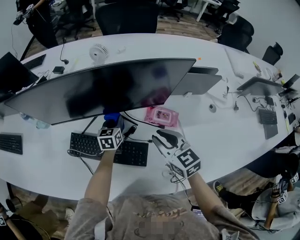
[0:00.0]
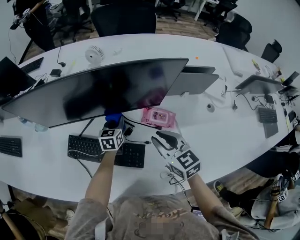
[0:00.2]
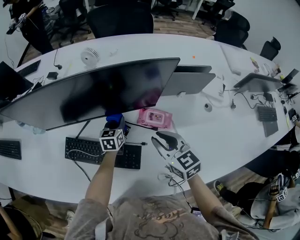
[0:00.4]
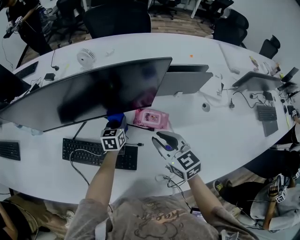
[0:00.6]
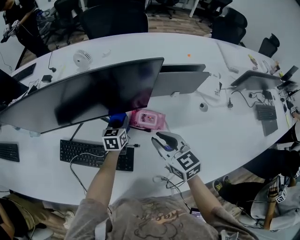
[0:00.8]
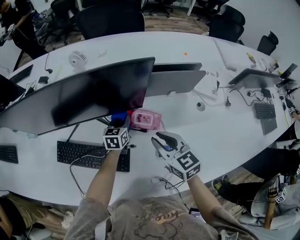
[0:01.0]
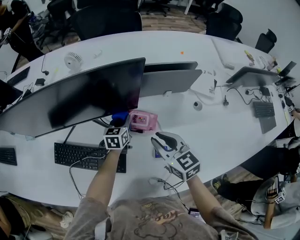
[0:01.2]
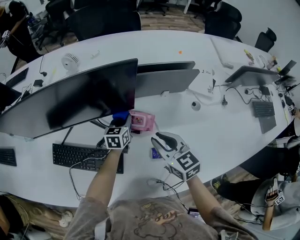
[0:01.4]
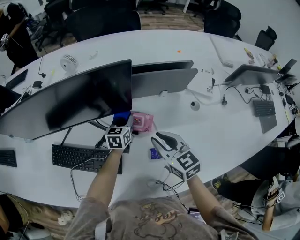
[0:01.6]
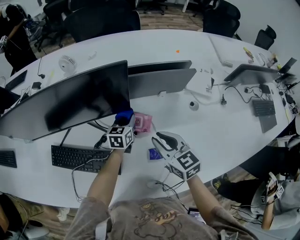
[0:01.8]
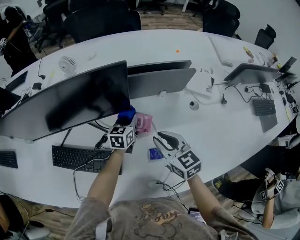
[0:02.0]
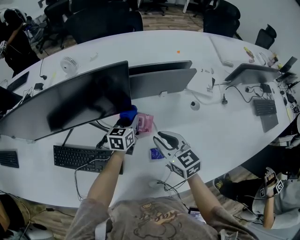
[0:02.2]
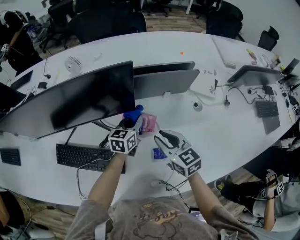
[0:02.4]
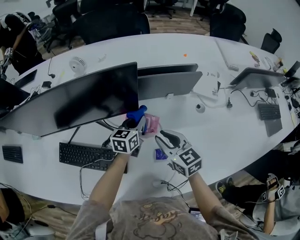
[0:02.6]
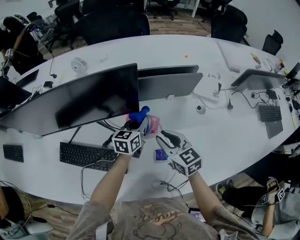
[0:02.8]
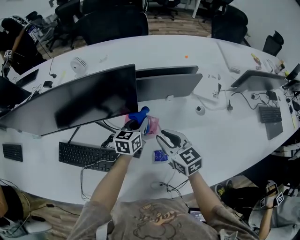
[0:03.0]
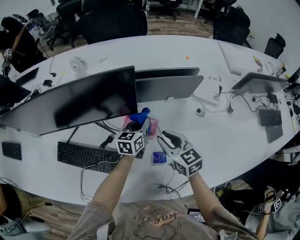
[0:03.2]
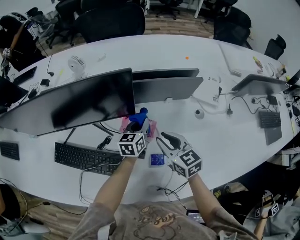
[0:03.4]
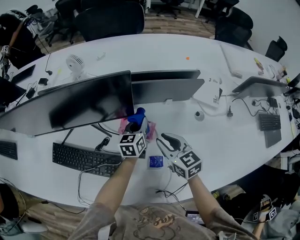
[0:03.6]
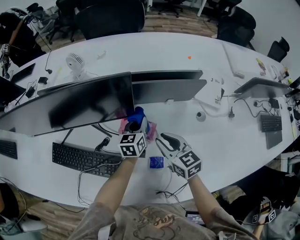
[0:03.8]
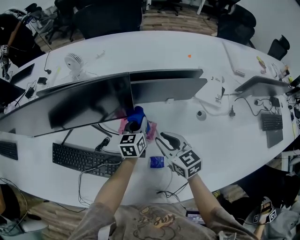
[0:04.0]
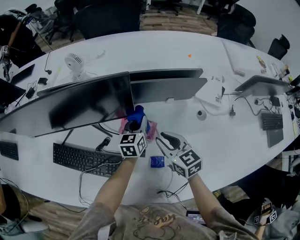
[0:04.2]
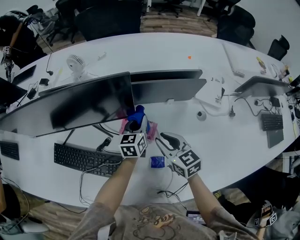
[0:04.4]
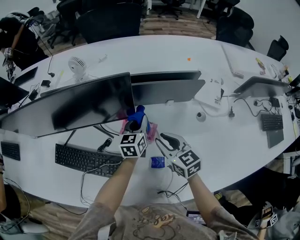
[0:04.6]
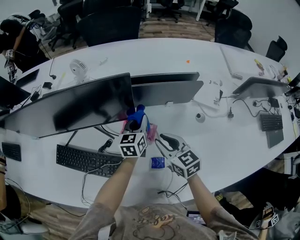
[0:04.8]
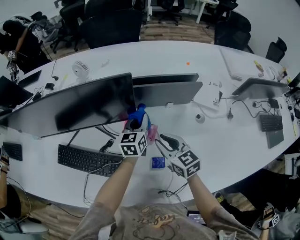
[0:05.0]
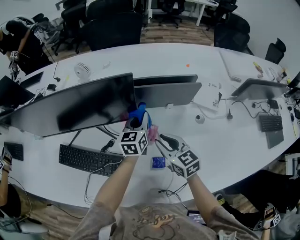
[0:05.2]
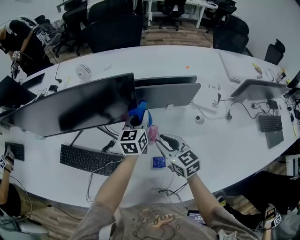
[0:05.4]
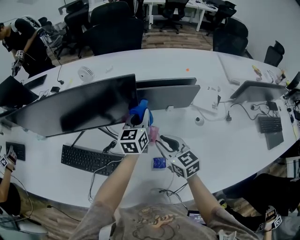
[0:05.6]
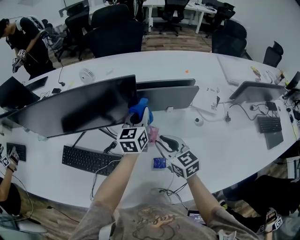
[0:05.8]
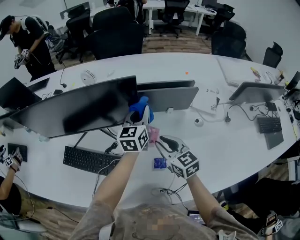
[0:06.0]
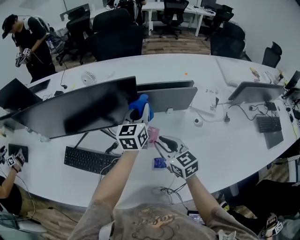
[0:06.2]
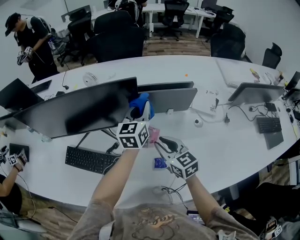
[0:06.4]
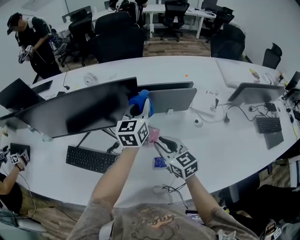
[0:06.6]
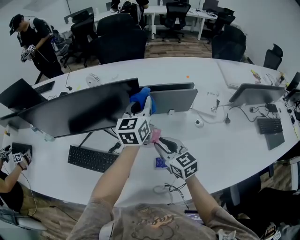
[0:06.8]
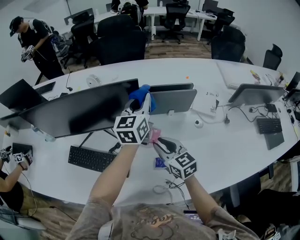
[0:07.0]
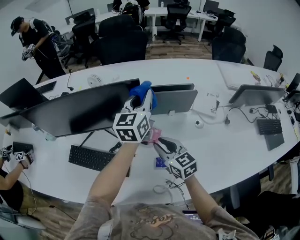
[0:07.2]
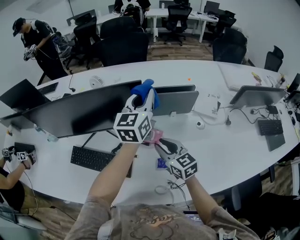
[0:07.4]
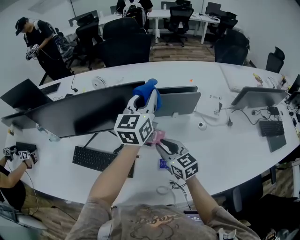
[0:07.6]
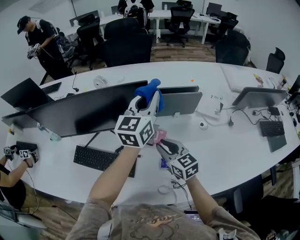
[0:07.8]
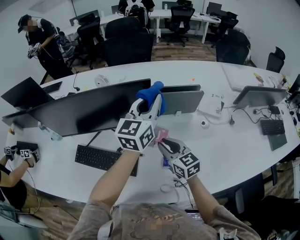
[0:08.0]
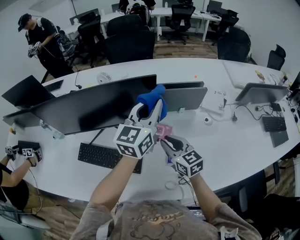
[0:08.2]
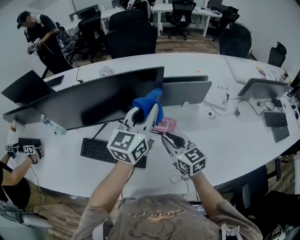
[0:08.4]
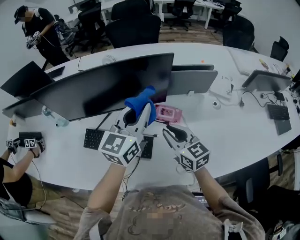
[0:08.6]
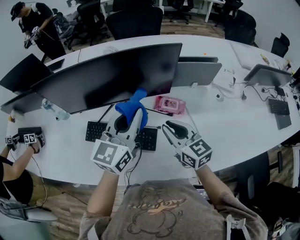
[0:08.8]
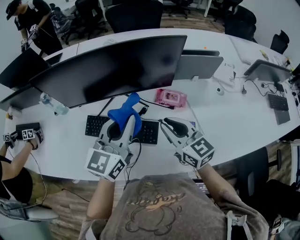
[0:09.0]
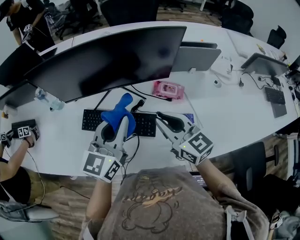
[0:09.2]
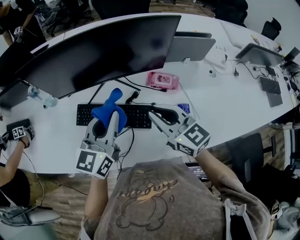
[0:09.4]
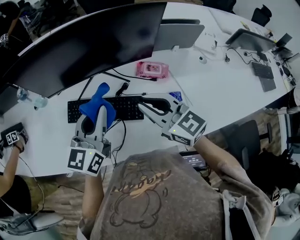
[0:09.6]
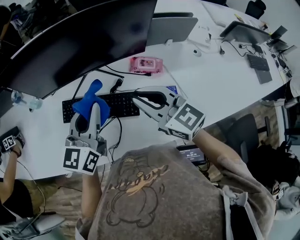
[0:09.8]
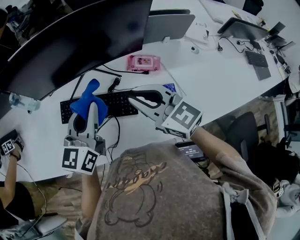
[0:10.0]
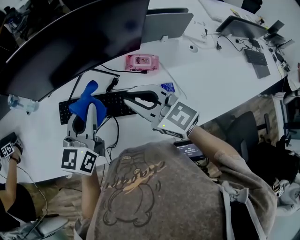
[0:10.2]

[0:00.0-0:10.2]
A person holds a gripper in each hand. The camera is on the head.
0:00.0 to 0:01.4: Both grippers travel together to the right, about 15 cm.
0:01.4 to 0:03.0: The left gripper travels to the right and upward by roughly 10 cm.
0:03.0 to 0:04.4: There are only small adjustments of the grippers.
0:04.4 to 0:05.8: The right gripper changes place by some 5 cm. The left gripper shifts about 15 cm upward.
0:05.8 to 0:07.2: The left gripper travels upward by some 15 cm.
0:07.2 to 0:08.8: The right gripper travels to the left and backward by some 15 cm; the left gripper heads to the left and backward, covering roughly 25 cm.
0:08.8 to 0:10.2: The right gripper goes some 10 cm to the left, while the left gripper shifts roughly 10 cm to the left and downward.

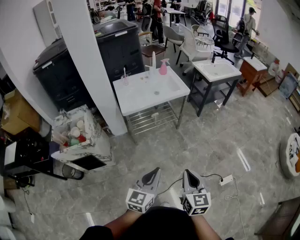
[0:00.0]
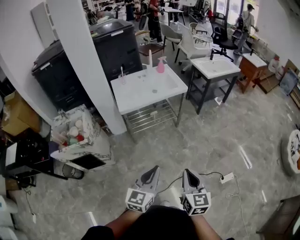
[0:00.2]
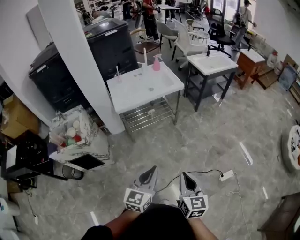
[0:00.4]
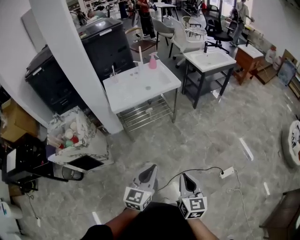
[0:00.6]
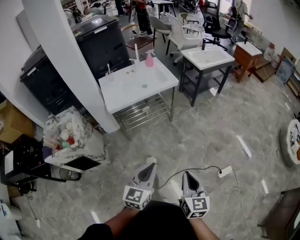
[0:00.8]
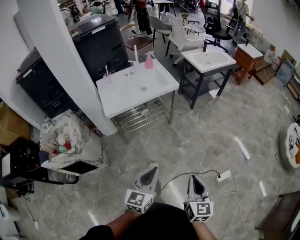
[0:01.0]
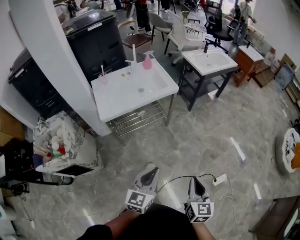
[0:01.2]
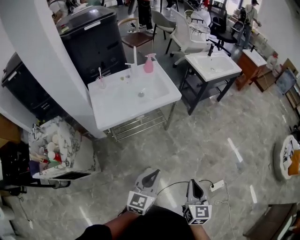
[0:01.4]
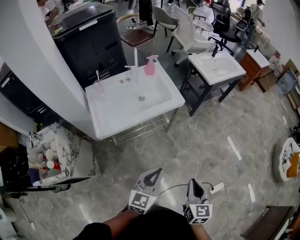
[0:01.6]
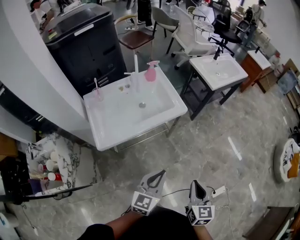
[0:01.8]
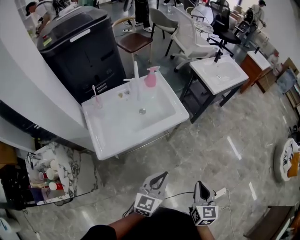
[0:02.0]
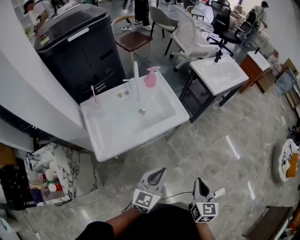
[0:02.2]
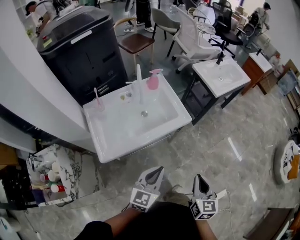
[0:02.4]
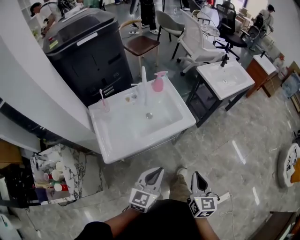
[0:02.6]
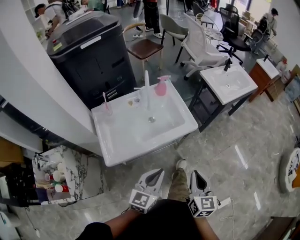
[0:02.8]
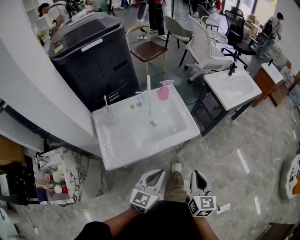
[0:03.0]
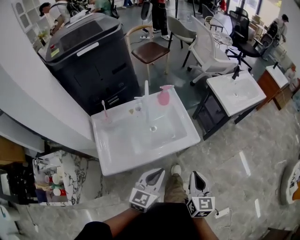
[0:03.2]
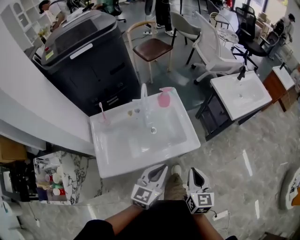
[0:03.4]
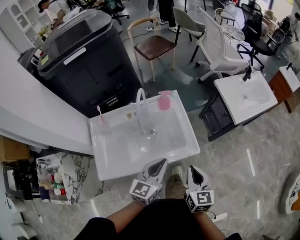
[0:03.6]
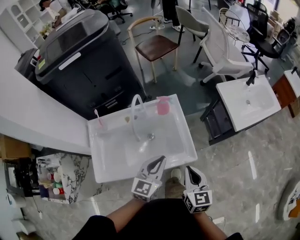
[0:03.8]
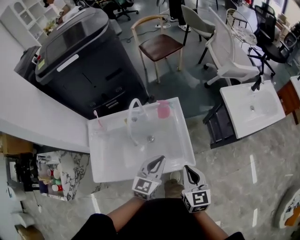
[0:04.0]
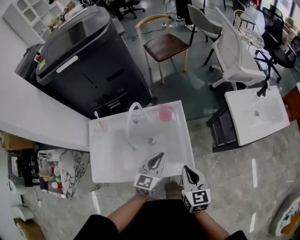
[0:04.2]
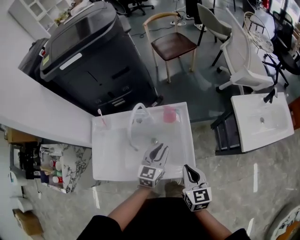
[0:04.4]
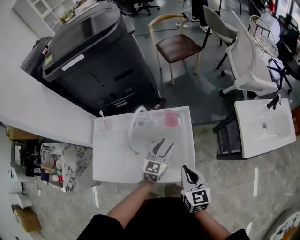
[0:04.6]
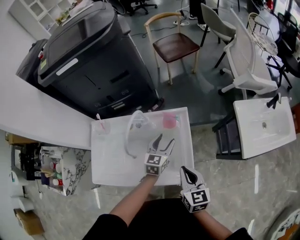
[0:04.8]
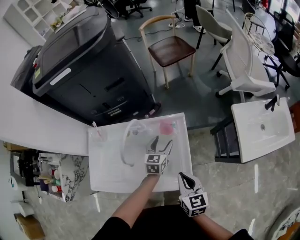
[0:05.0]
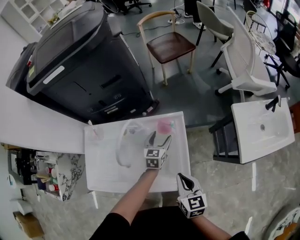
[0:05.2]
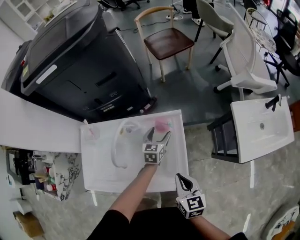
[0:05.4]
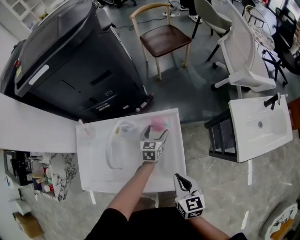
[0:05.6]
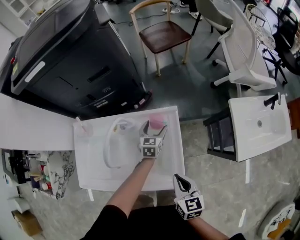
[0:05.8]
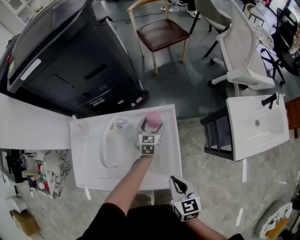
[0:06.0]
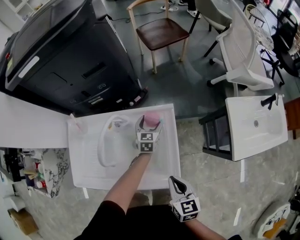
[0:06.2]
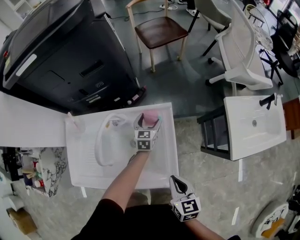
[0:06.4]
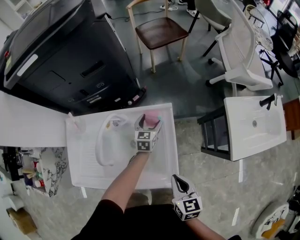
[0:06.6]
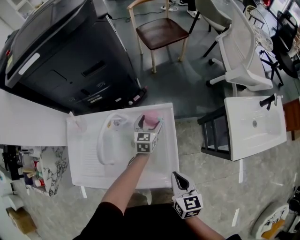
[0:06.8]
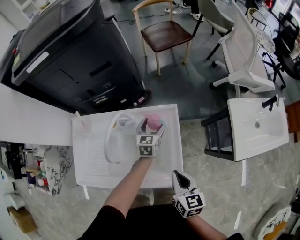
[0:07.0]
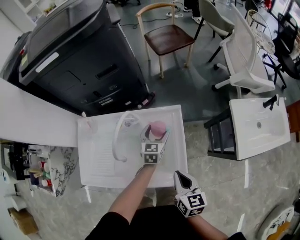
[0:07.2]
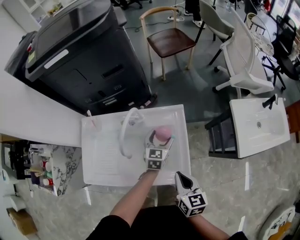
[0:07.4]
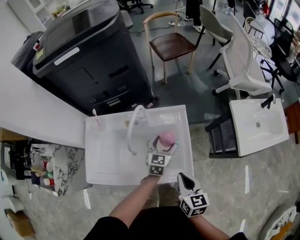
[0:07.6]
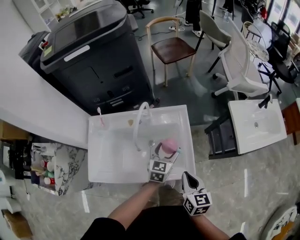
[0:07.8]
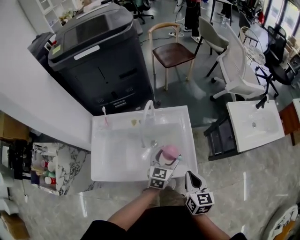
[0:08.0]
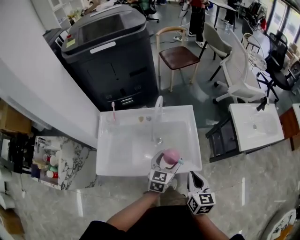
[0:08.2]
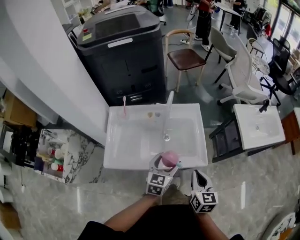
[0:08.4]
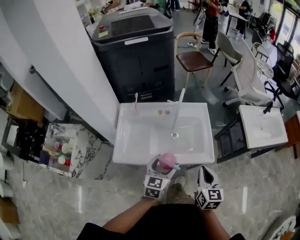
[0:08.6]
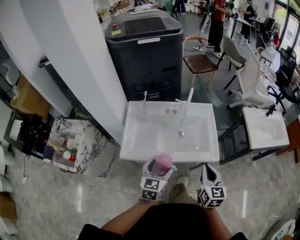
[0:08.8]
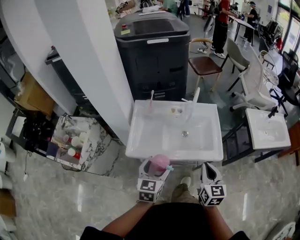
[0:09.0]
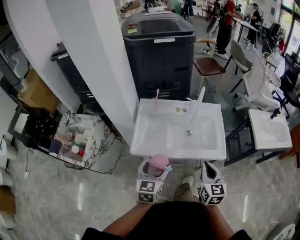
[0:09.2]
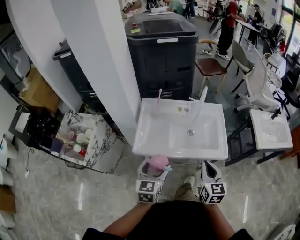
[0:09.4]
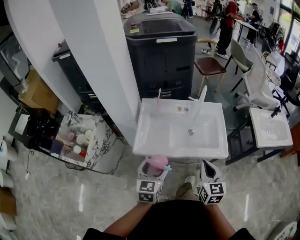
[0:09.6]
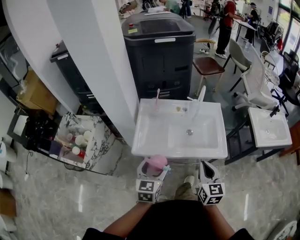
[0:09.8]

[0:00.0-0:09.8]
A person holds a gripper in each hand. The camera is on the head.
0:00.0 to 0:01.4: The grippers both shift forward by roughly 25 cm.
0:01.4 to 0:02.8: The two grippers go some 30 cm forward and to the left.
0:02.8 to 0:04.2: The right gripper moves roughly 40 cm, and turns by some 30 degrees. The left gripper ends up some 40 cm from where it was, and swivels some 20 degrees.
0:04.2 to 0:05.6: The left gripper goes approximately 30 cm forward and downward, and opens. The right gripper shifts roughly 10 cm forward and downward.
0:05.6 to 0:07.0: The grippers make only small movements.
0:07.0 to 0:08.4: The right gripper shifts roughly 25 cm backward and to the left. The left gripper moves backward and upward, about 40 cm.
0:08.4 to 0:09.8: The right gripper is displaced to the left and backward by roughly 15 cm. Meanwhile the left gripper travels to the left and backward by roughly 30 cm.

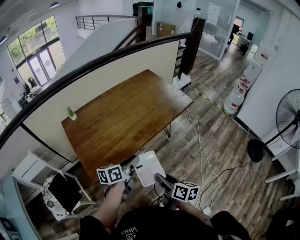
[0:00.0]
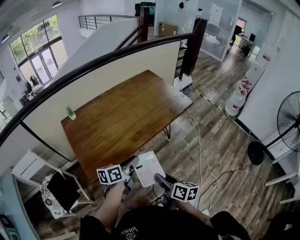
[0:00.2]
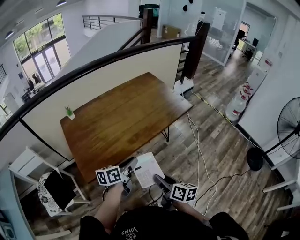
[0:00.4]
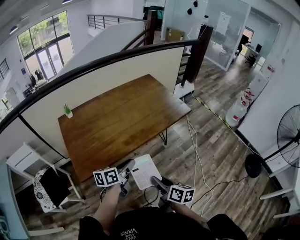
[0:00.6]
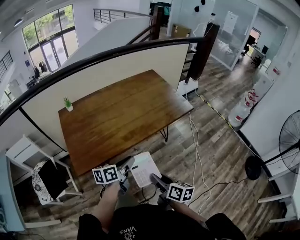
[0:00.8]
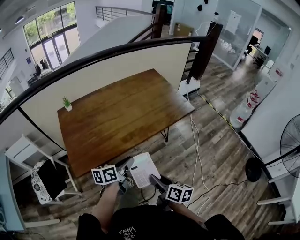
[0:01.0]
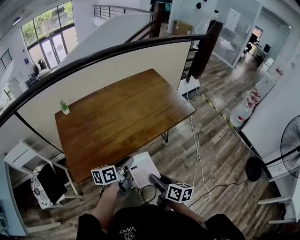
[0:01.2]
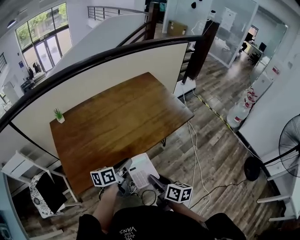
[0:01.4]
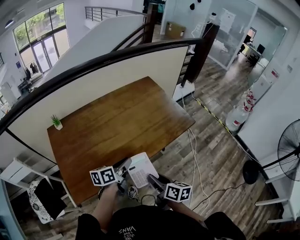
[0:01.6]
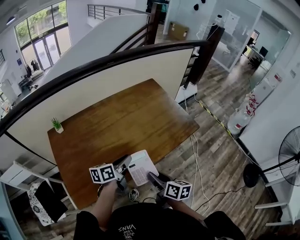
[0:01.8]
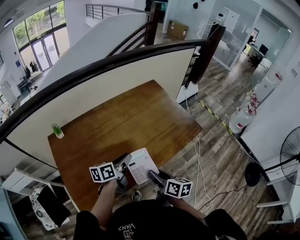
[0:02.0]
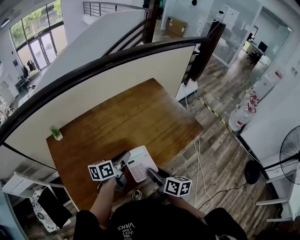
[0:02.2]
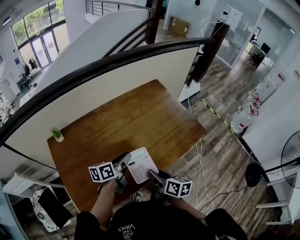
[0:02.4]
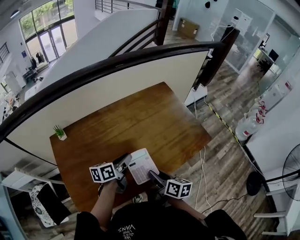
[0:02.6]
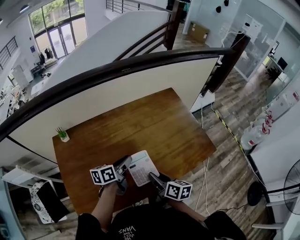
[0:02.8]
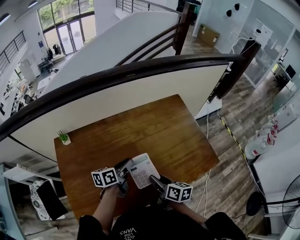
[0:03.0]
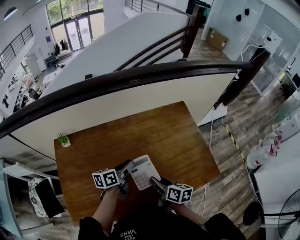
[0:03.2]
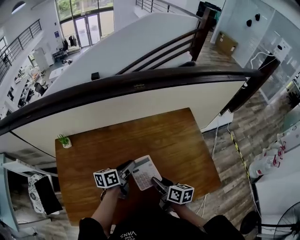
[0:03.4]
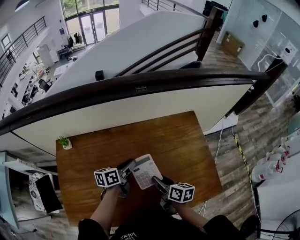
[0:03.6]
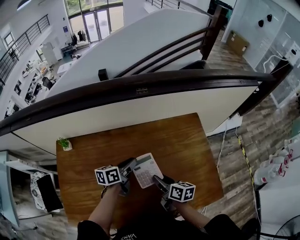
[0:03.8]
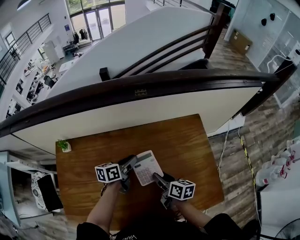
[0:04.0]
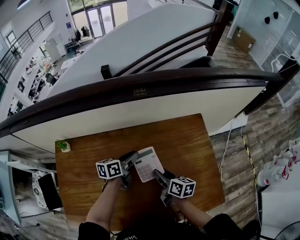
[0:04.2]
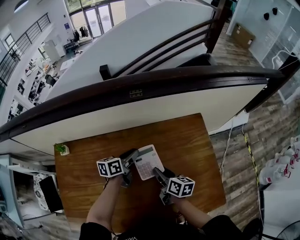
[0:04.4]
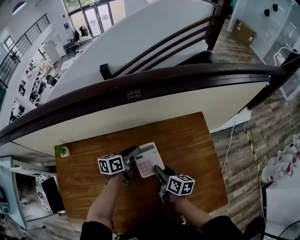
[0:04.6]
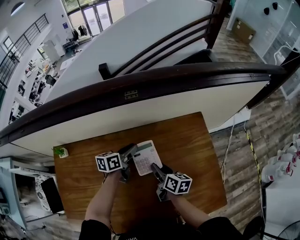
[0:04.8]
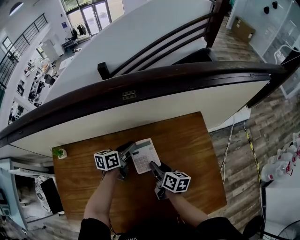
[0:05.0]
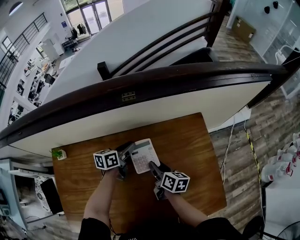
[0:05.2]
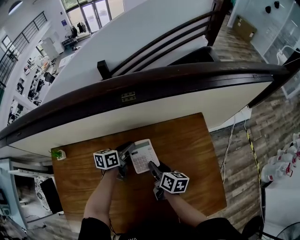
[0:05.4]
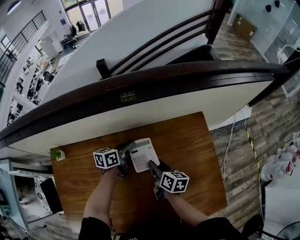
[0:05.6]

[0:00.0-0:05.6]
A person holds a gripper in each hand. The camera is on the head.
0:00.0 to 0:01.4: Both grippers travel together forward and to the right, roughly 15 cm.
0:01.4 to 0:02.8: The left gripper travels forward and to the left by roughly 25 cm; the right gripper is displaced forward by some 25 cm.
0:02.8 to 0:04.2: The grippers both shift forward by some 25 cm.
0:04.2 to 0:05.6: Both grippers travel together forward, approximately 10 cm.
